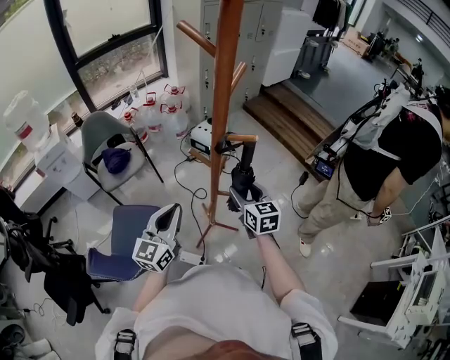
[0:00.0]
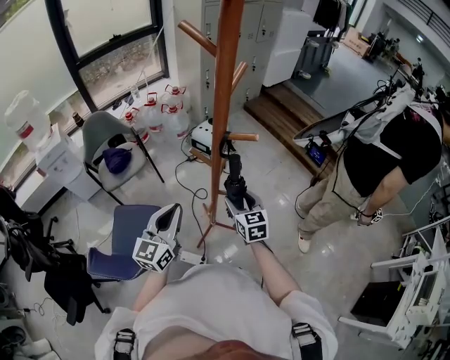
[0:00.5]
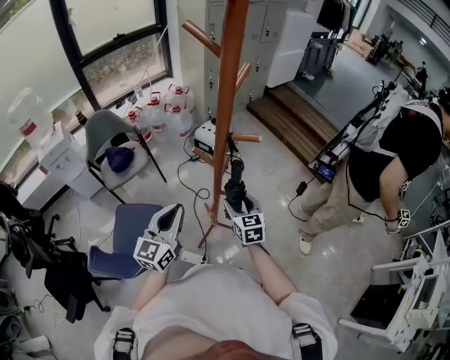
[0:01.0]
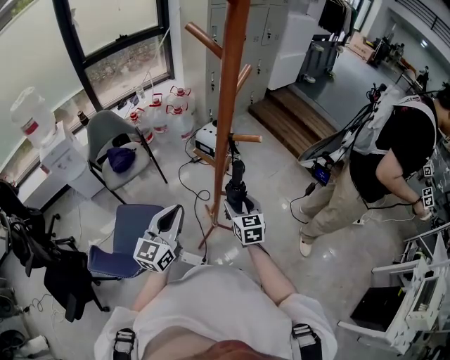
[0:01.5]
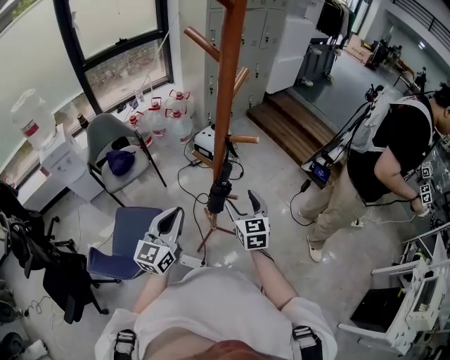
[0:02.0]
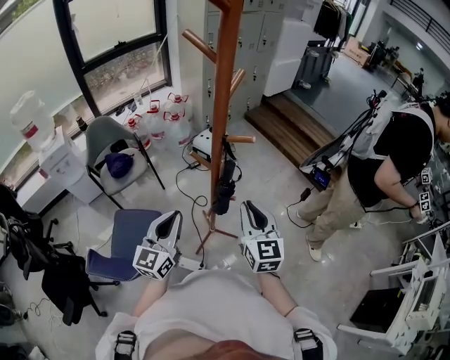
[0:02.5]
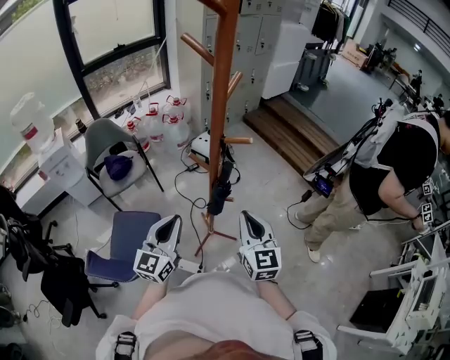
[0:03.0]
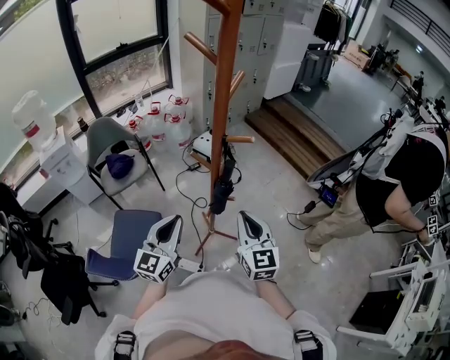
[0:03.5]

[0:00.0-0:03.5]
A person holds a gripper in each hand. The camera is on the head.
0:02.0 to 0:03.5: The right gripper travels backward and upward by about 10 cm, and closes.

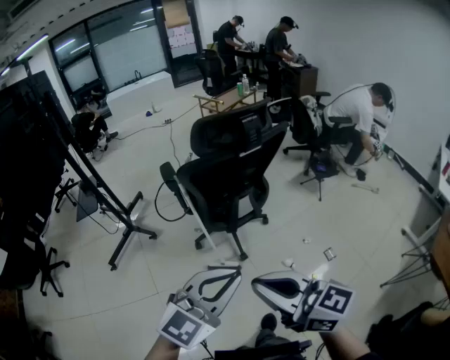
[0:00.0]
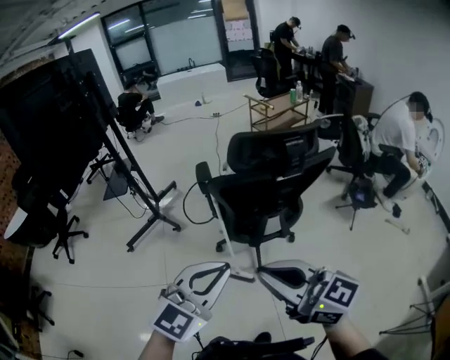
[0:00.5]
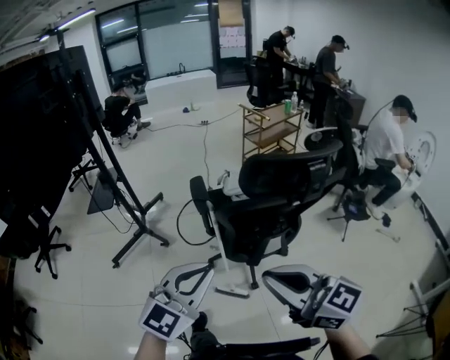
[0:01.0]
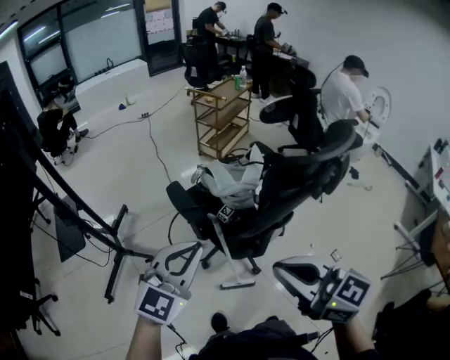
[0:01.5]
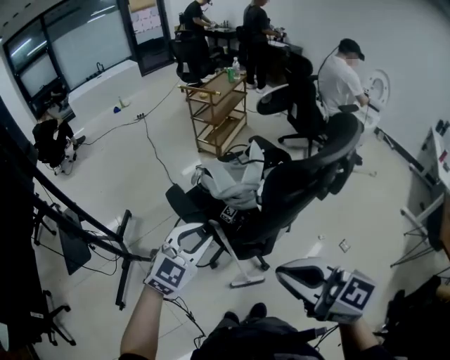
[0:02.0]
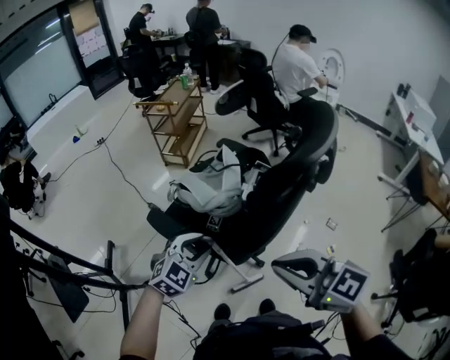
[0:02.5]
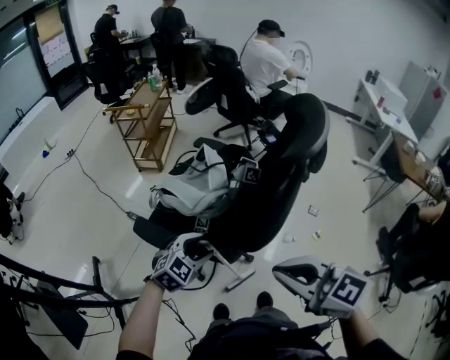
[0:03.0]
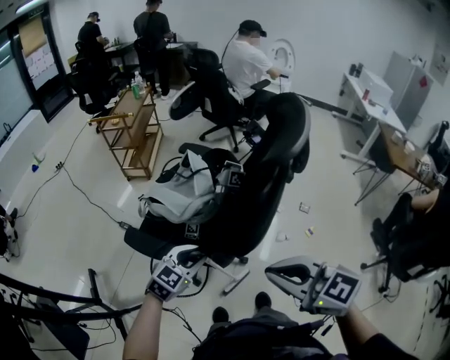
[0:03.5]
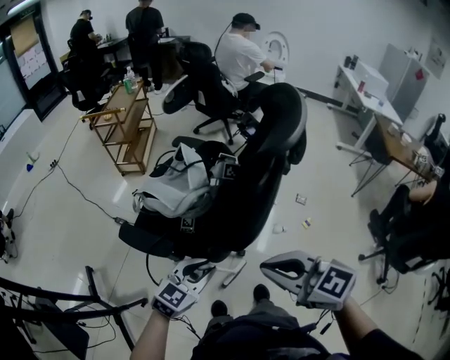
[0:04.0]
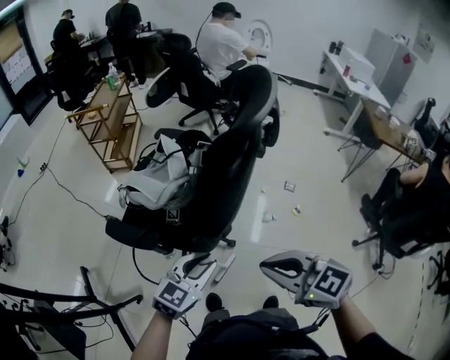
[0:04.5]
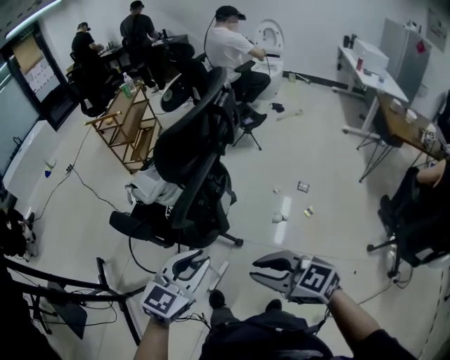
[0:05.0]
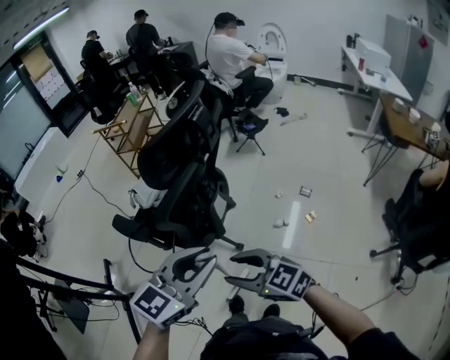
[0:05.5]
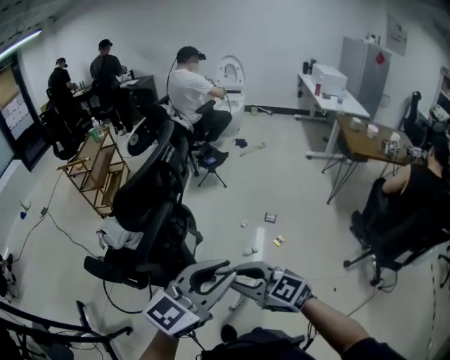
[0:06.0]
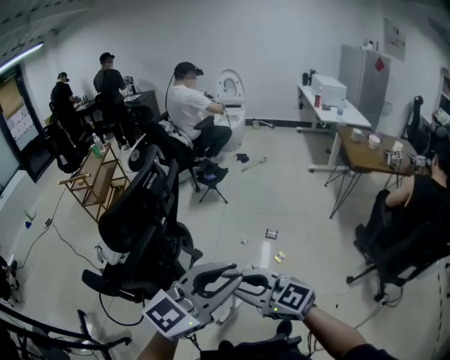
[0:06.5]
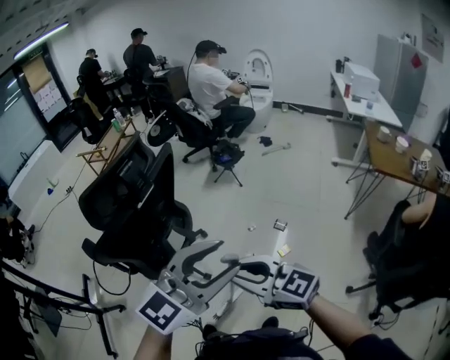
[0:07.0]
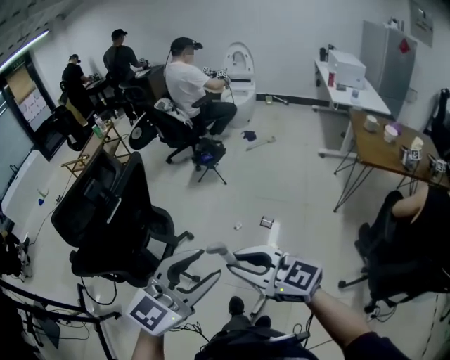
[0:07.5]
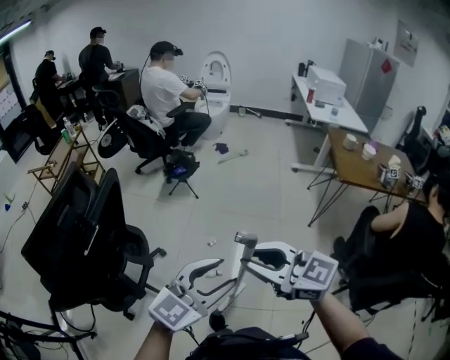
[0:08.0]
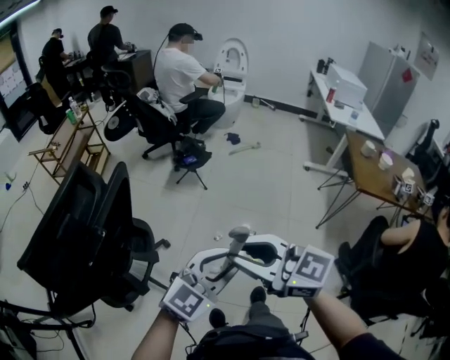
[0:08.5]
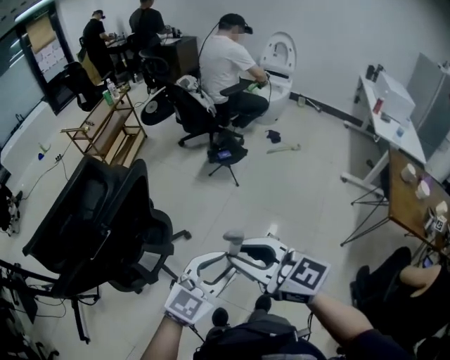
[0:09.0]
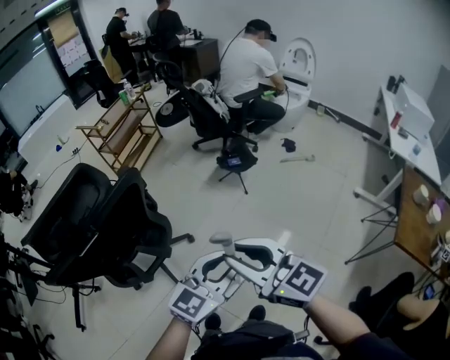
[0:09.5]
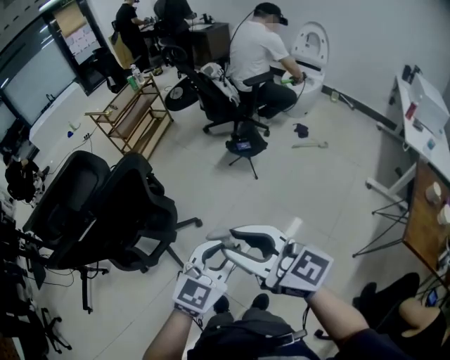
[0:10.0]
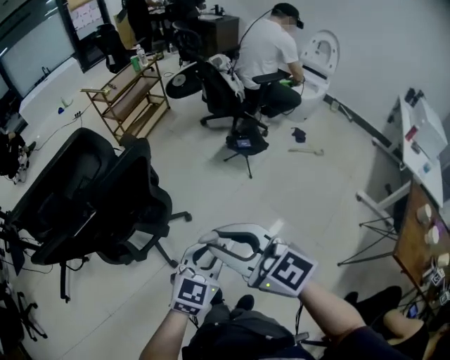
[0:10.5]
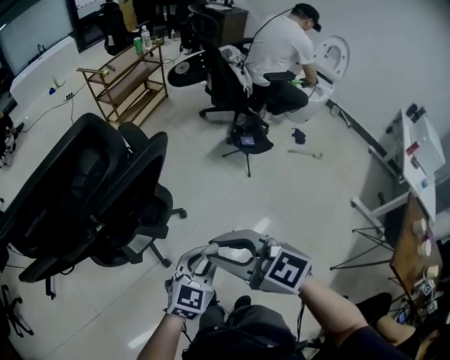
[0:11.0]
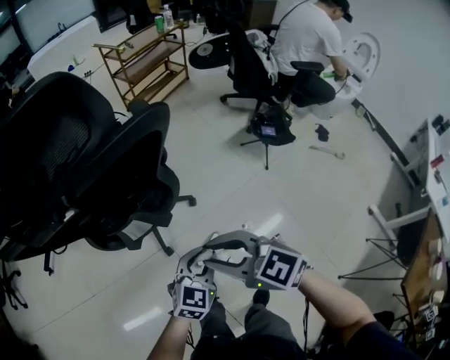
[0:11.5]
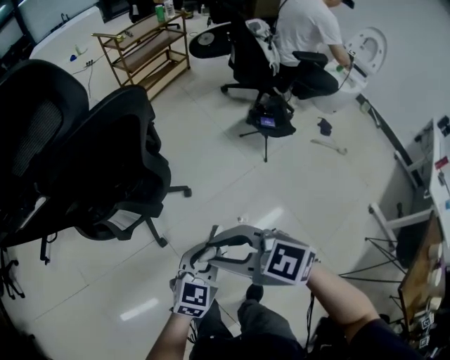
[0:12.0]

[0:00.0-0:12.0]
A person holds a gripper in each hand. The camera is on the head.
0:00.0 to 0:02.0: The left gripper ends up some 50 cm from where it was, and opens, while the right gripper moves roughly 35 cm, and turns by roughly 20 degrees.
0:02.0 to 0:04.0: The left gripper shifts about 10 cm downward, rotates about 40 degrees, and opens and closes again, while the right gripper moves downward, some 5 cm, and changes its angle by some 30 degrees.
0:04.0 to 0:06.0: The left gripper moves to the right and upward, approximately 35 cm, and turns by about 20 degrees, while the right gripper travels to the right by approximately 20 cm, and opens its fingers.
0:06.0 to 0:08.0: Both grippers move to the right and forward, about 35 cm. The left gripper opens up.
0:08.0 to 0:10.0: The right gripper ends up roughly 20 cm from where it was, and changes its angle by about 30 degrees; the left gripper changes place by about 25 cm, changes its angle by approximately 40 degrees, and closes.
0:10.0 to 0:12.0: Both grippers move downward, approximately 25 cm. The right gripper swivels some 50 degrees. Meanwhile the left gripper changes its angle by roughly 30 degrees.

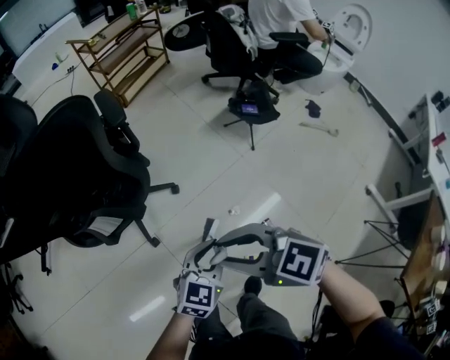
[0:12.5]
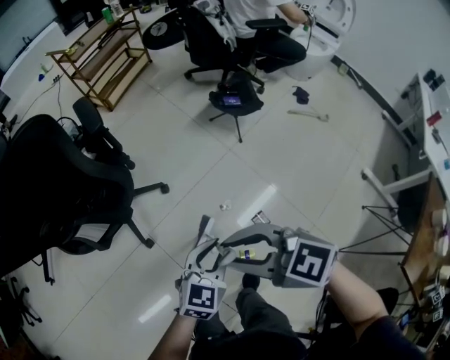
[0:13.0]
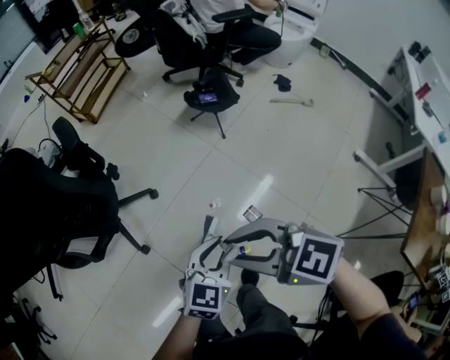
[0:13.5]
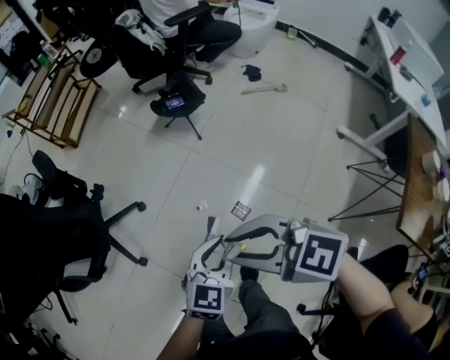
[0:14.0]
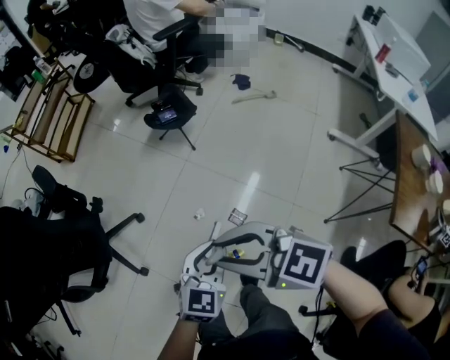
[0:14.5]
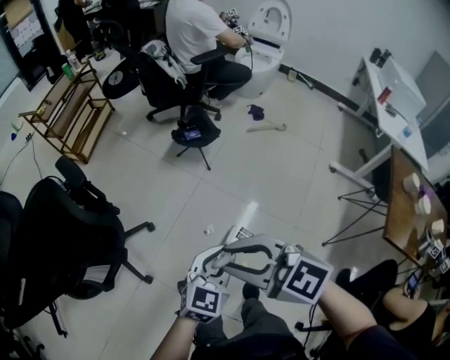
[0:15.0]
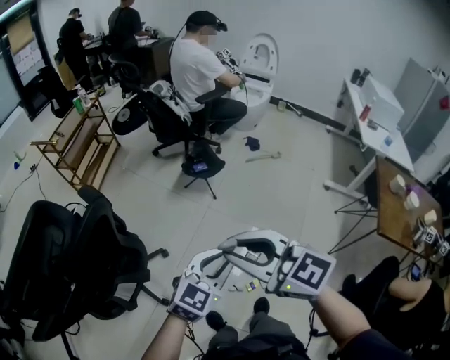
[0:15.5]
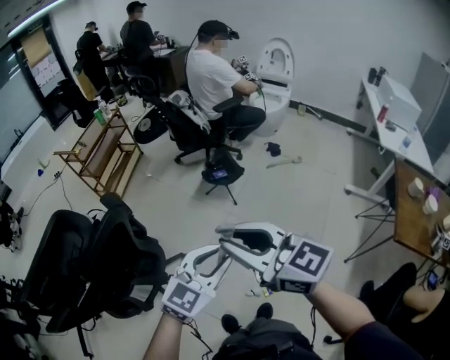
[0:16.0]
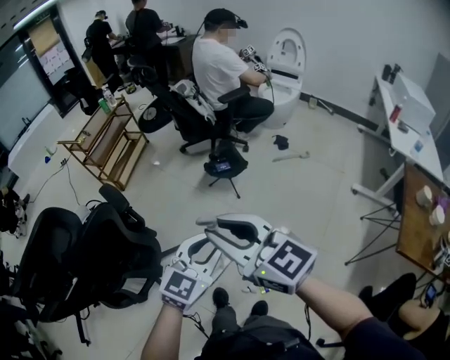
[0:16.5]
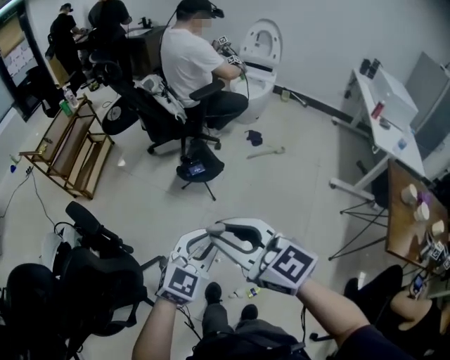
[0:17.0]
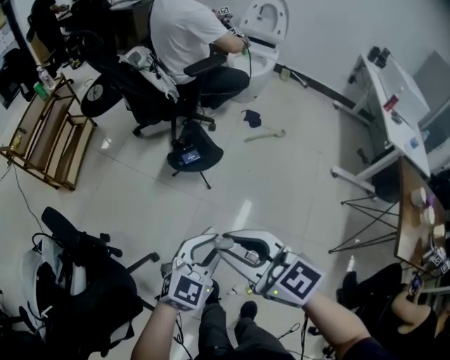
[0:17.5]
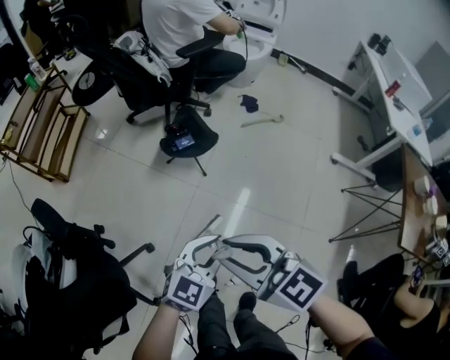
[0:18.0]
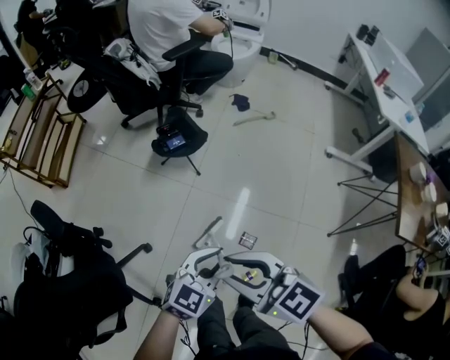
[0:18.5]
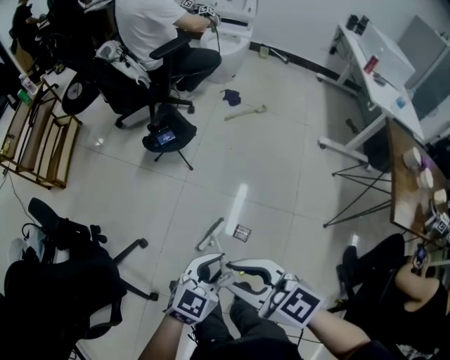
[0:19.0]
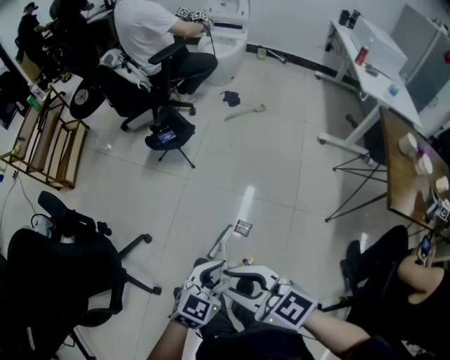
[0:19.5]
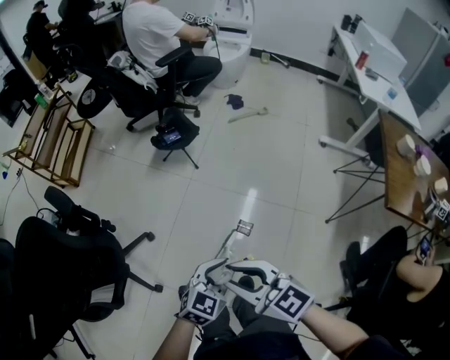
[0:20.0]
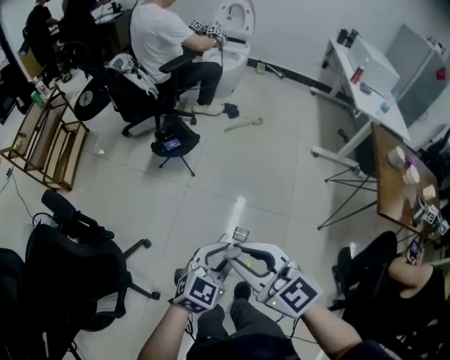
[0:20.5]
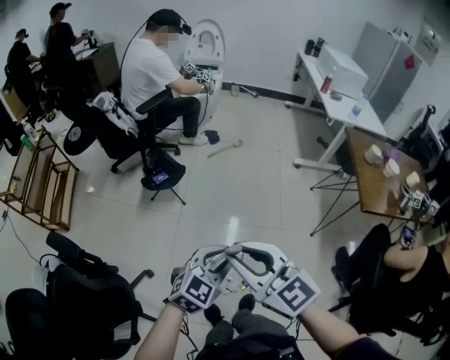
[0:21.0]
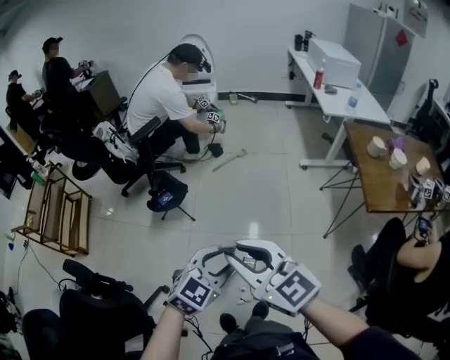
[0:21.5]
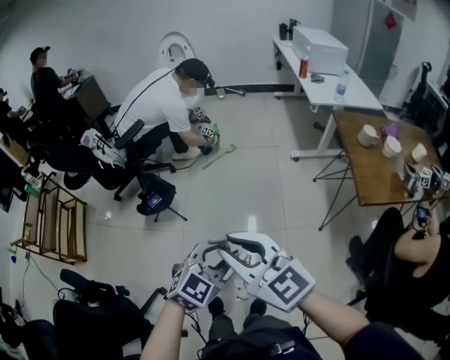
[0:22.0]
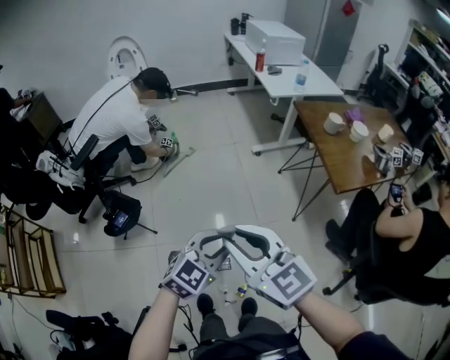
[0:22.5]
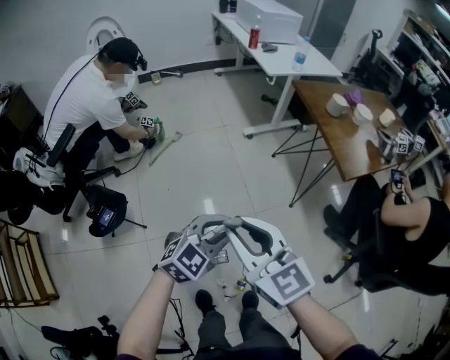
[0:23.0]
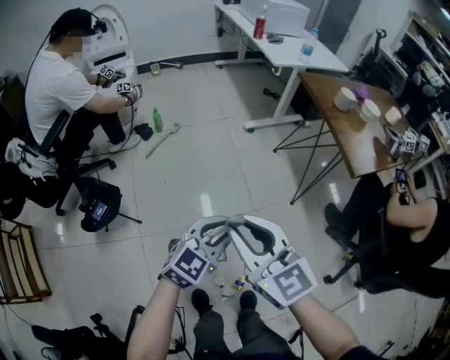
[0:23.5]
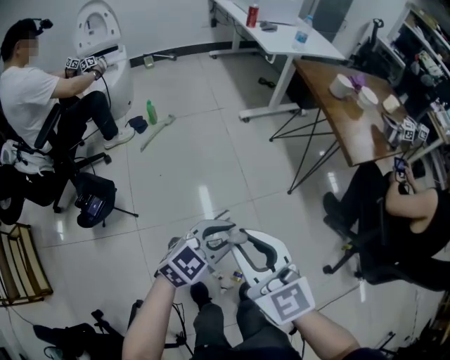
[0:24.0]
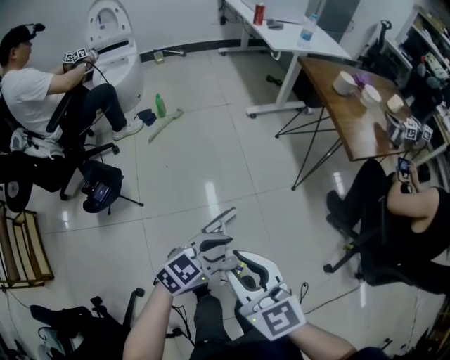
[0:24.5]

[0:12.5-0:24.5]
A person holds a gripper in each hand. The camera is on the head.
0:12.5 to 0:14.5: Both grippers travel together to the right, roughly 20 cm. The right gripper changes its angle by approximately 20 degrees; the left gripper turns by roughly 20 degrees.
0:14.5 to 0:16.5: The two grippers go some 25 cm upward and to the left. The right gripper changes its angle by approximately 20 degrees.
0:16.5 to 0:18.5: Both grippers move downward, some 25 cm. The left gripper changes its angle by some 20 degrees.
0:18.5 to 0:20.5: Both grippers move backward and upward, approximately 10 cm.
0:20.5 to 0:22.5: The left gripper ends up some 25 cm from where it was, and rotates roughly 40 degrees. The right gripper shifts by about 25 cm, and turns by approximately 30 degrees.
0:22.5 to 0:24.5: The two grippers go roughly 15 cm downward and backward. The left gripper swivels about 20 degrees.
